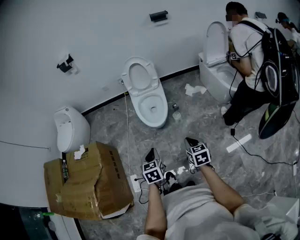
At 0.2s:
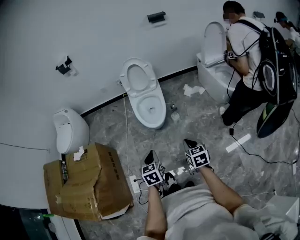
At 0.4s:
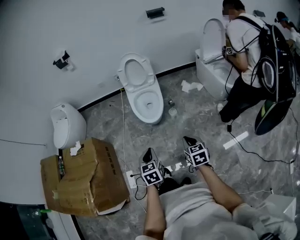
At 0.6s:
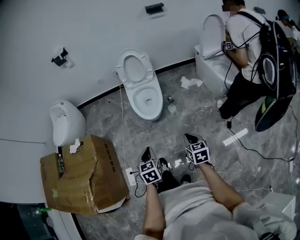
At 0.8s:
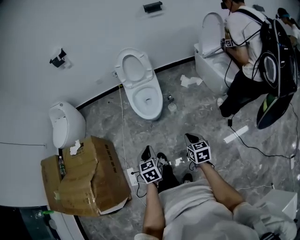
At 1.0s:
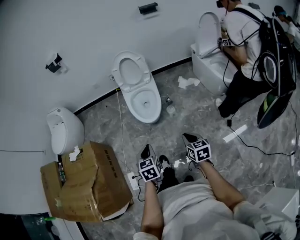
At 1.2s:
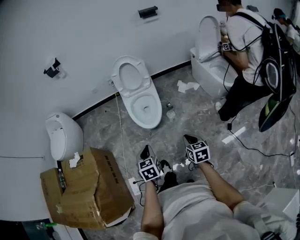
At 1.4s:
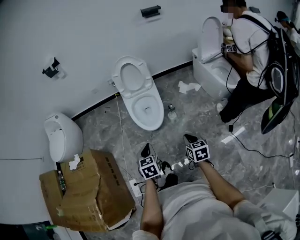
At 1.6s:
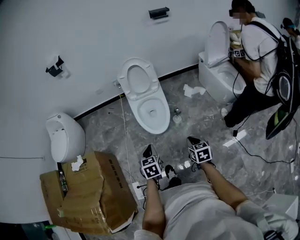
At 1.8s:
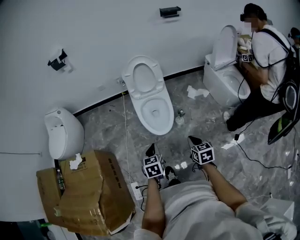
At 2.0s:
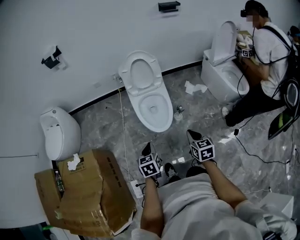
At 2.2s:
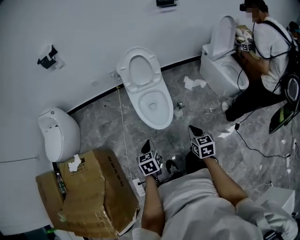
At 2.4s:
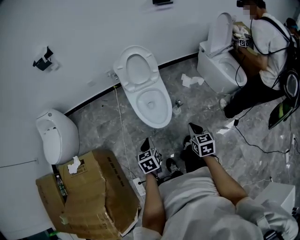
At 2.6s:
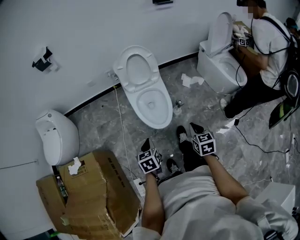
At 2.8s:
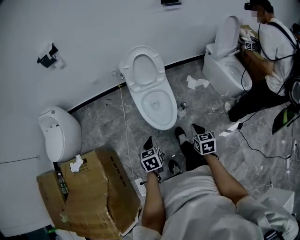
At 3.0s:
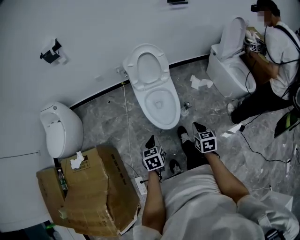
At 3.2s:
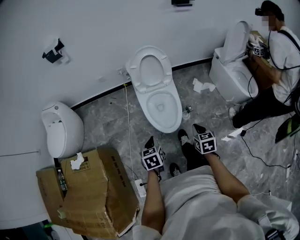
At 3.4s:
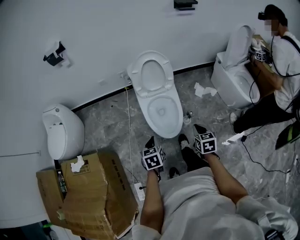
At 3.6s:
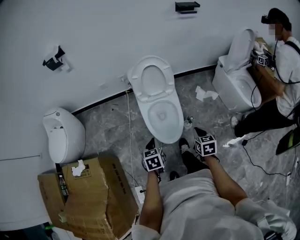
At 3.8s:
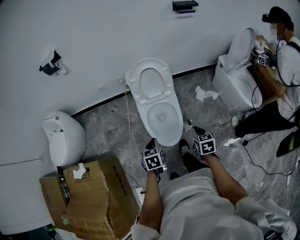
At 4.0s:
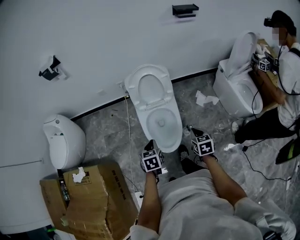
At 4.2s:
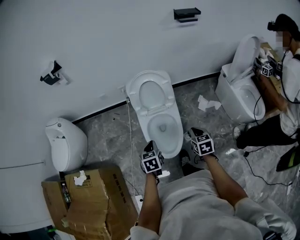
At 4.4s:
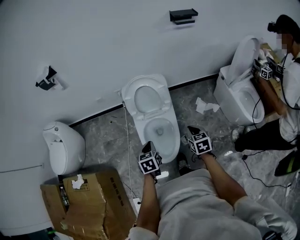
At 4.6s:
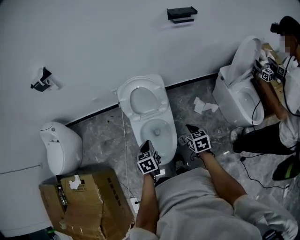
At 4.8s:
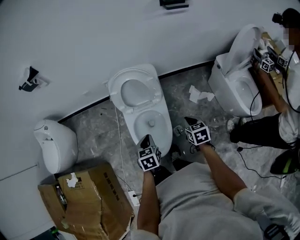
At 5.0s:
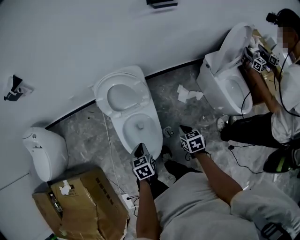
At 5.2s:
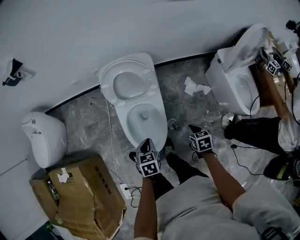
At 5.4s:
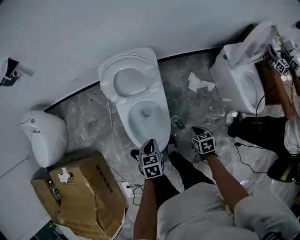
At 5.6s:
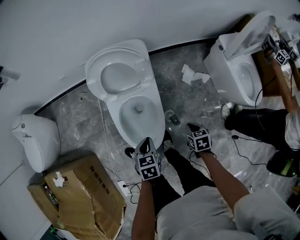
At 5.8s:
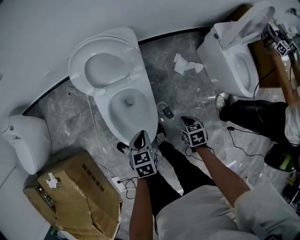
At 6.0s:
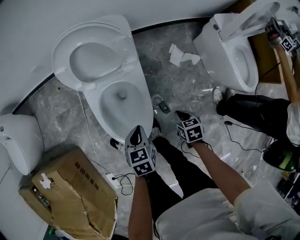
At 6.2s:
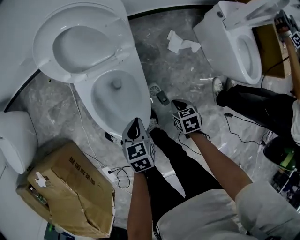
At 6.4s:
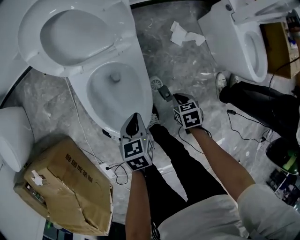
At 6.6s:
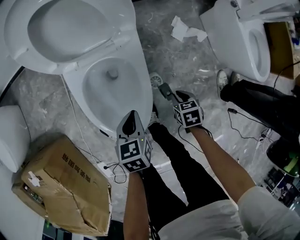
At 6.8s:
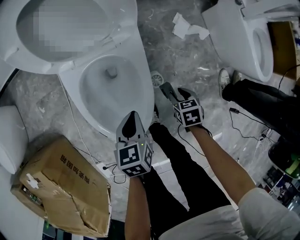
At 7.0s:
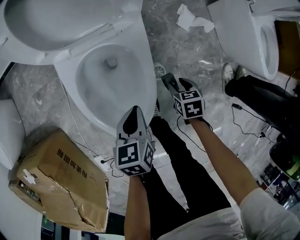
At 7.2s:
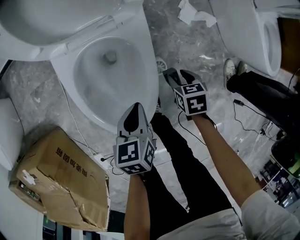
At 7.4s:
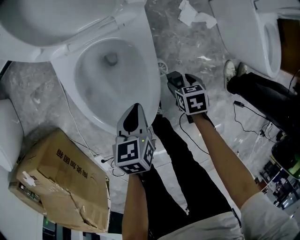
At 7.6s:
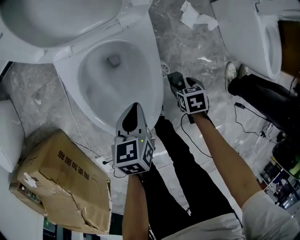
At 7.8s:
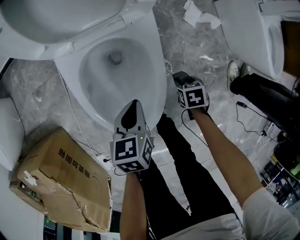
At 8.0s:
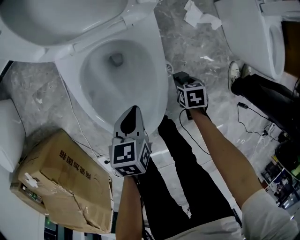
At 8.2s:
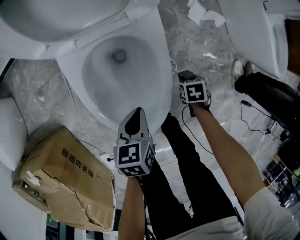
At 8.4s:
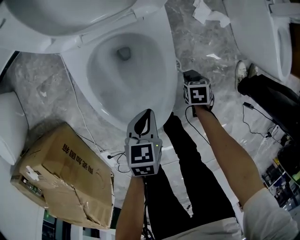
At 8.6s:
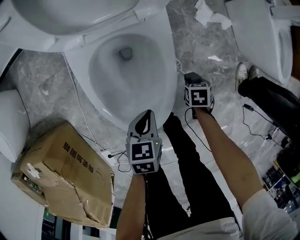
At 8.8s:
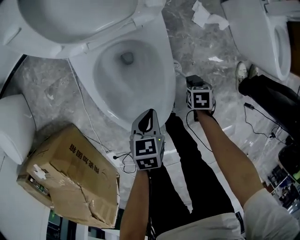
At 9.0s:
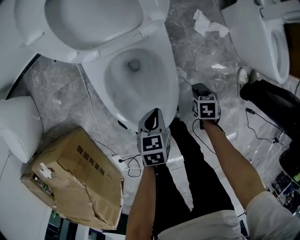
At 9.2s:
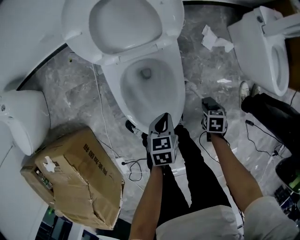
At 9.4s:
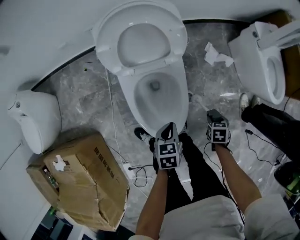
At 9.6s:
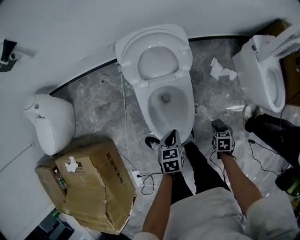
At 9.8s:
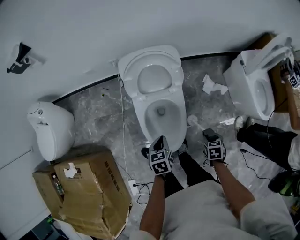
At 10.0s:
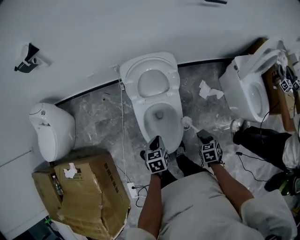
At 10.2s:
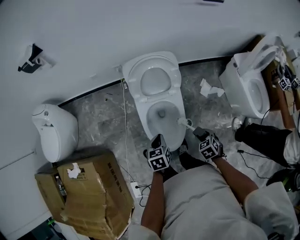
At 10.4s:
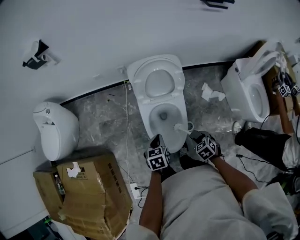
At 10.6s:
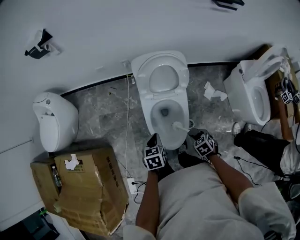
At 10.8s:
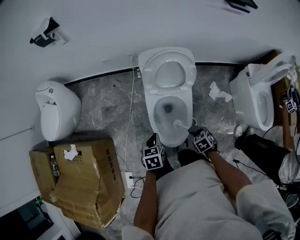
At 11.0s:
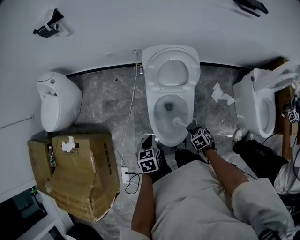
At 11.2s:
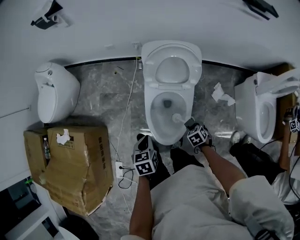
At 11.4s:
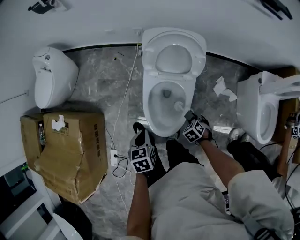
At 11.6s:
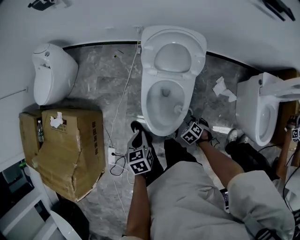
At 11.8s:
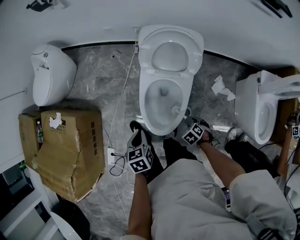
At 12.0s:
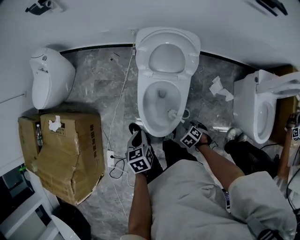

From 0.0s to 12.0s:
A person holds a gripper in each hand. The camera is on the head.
From 0.0s to 1.6s: The two grippers go approximately 10 cm forward.
From 1.6s to 3.0s: Both grippers travel together forward and to the left, roughly 15 cm.
From 3.0s to 4.4s: Both grippers travel together forward, some 25 cm.
From 4.4s to 6.0s: The right gripper goes approximately 25 cm downward, and turns by roughly 30 degrees, while the left gripper shifts some 20 cm downward and to the right.
From 6.0s to 7.6s: The grippers both shift downward by roughly 15 cm. The right gripper opens its fingers.
From 7.6s to 9.0s: The grippers make only small movements.
From 9.0s to 10.4s: Both grippers move upward, some 30 cm. The right gripper swivels about 40 degrees.
From 10.4s to 12.0s: The left gripper moves some 5 cm, and swivels roughly 20 degrees; the right gripper travels downward by about 15 cm, and turns by some 30 degrees.

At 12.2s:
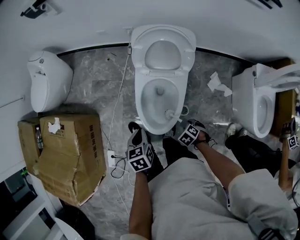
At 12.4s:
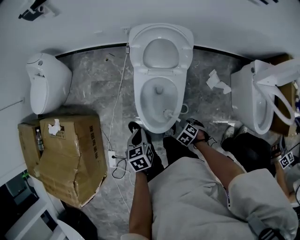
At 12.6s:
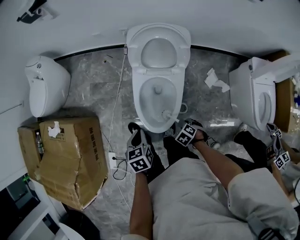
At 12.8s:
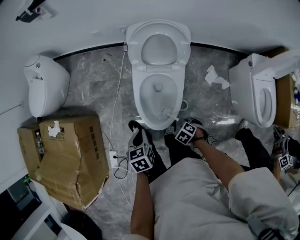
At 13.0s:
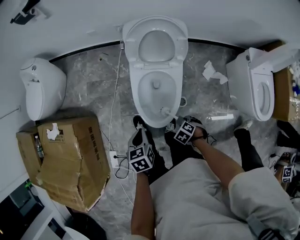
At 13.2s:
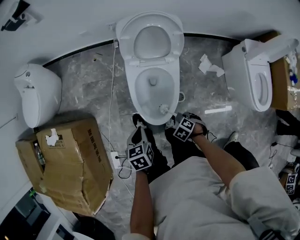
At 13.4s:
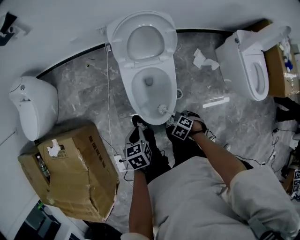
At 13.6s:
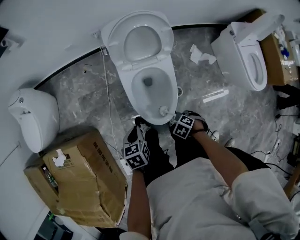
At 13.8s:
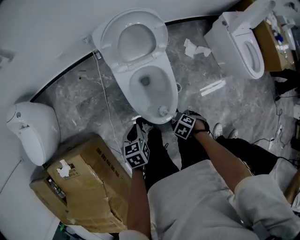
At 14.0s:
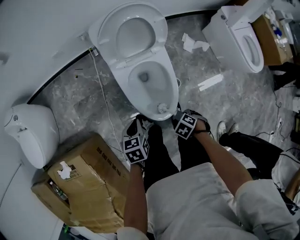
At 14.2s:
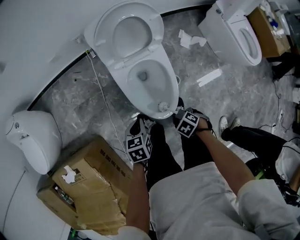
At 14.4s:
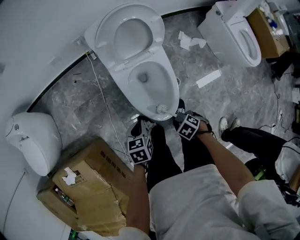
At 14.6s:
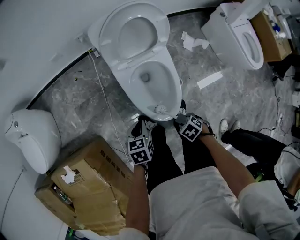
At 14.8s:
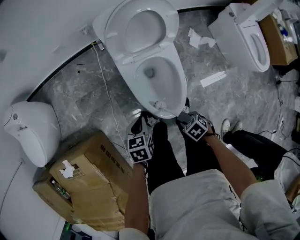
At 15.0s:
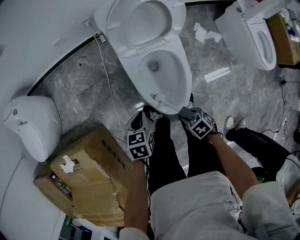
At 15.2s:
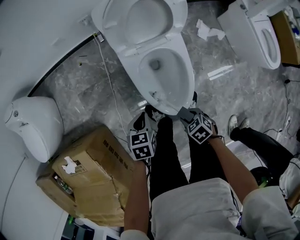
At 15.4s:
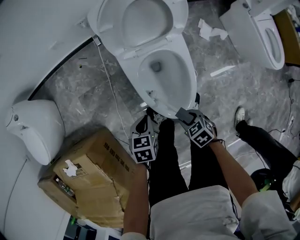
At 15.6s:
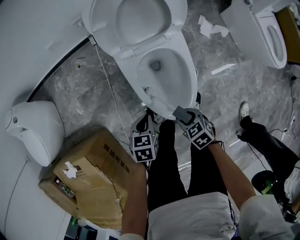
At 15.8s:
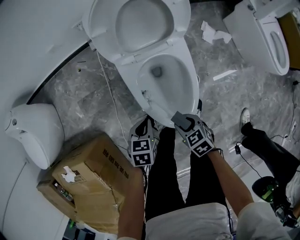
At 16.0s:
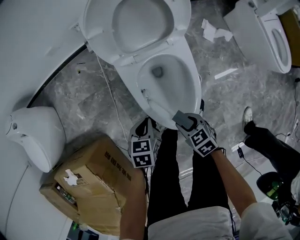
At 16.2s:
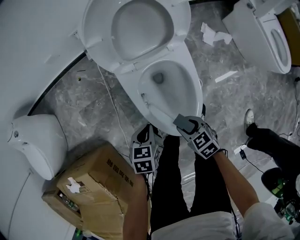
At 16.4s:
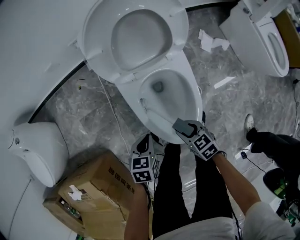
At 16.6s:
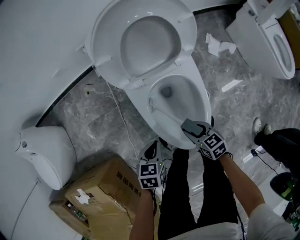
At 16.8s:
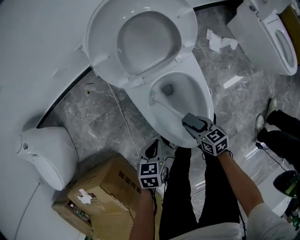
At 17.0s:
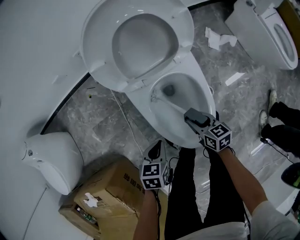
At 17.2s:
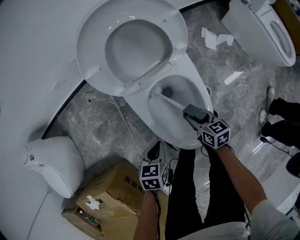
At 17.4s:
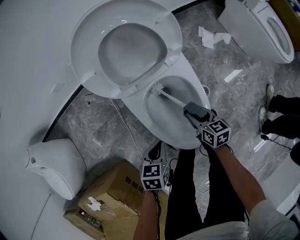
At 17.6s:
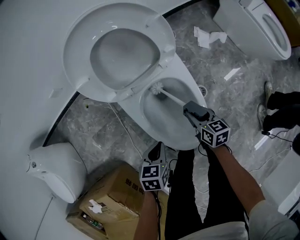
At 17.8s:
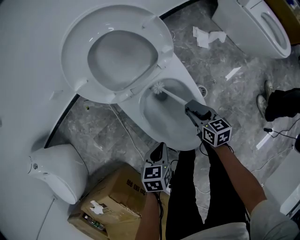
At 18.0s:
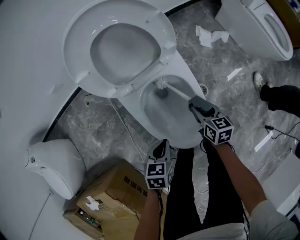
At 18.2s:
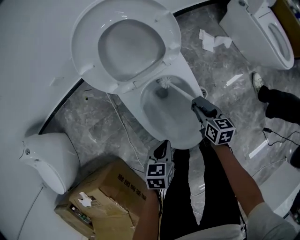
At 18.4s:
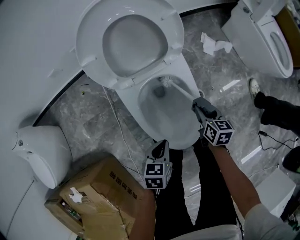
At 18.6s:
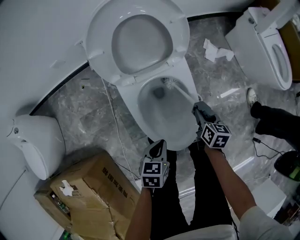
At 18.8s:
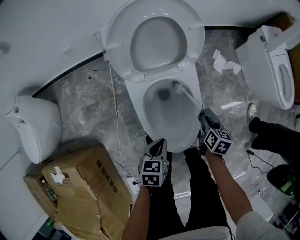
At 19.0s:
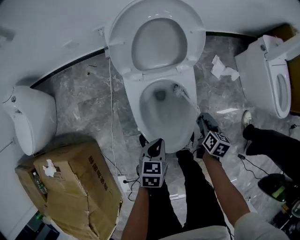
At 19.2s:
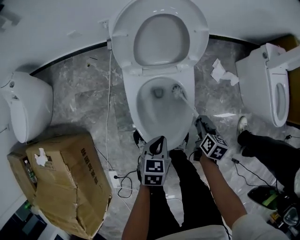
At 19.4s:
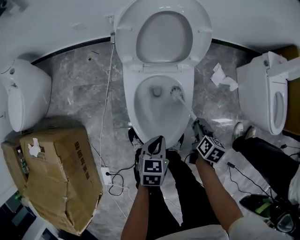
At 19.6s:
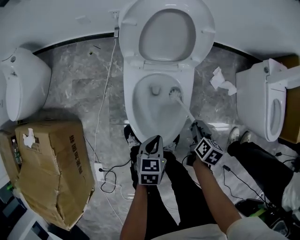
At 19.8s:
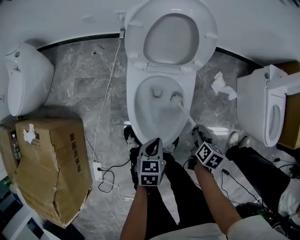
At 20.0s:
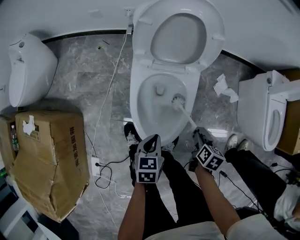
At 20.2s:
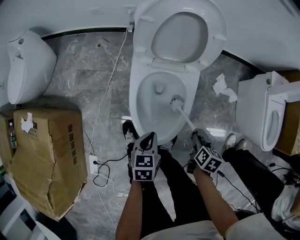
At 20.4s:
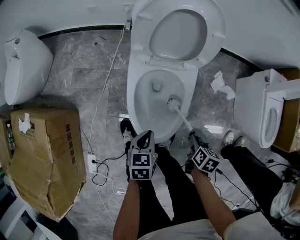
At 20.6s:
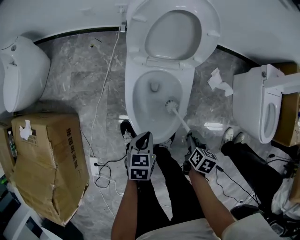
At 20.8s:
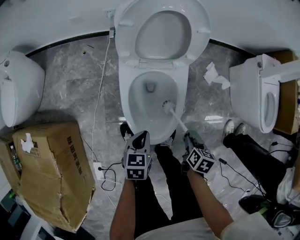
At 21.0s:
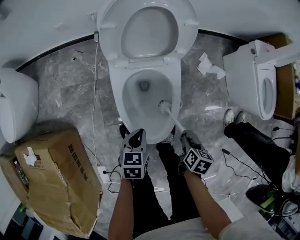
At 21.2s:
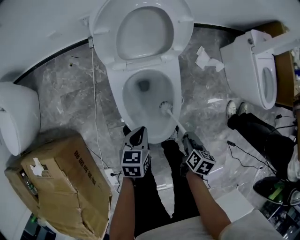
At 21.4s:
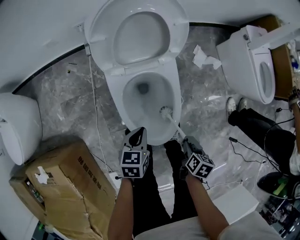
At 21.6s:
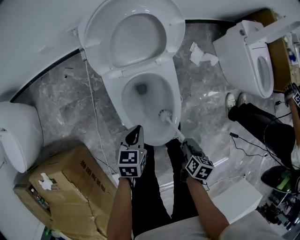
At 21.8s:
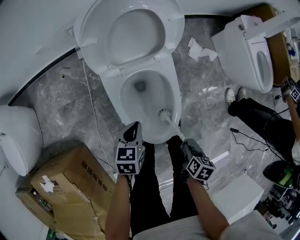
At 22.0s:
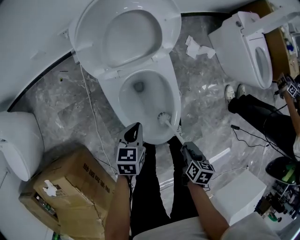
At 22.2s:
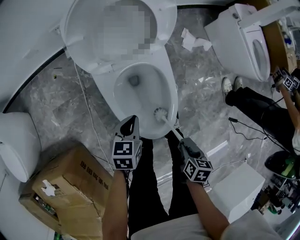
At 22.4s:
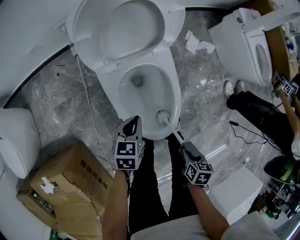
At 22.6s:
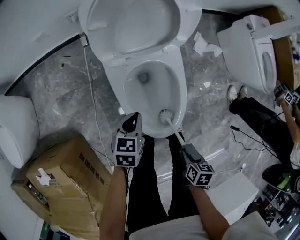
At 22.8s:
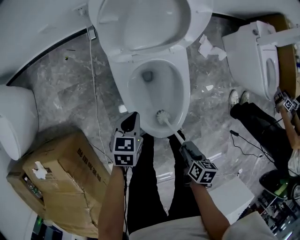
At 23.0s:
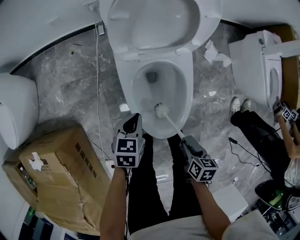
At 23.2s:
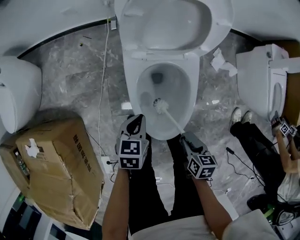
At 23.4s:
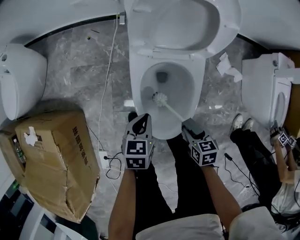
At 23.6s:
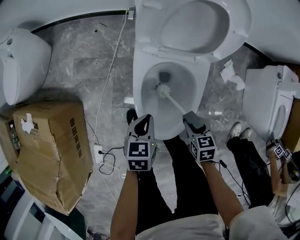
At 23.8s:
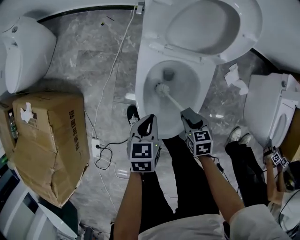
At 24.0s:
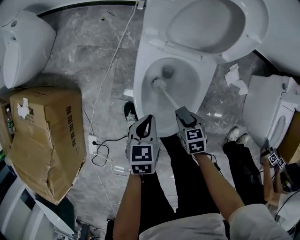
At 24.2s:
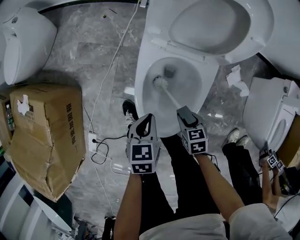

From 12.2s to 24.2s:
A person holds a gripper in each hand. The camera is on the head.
From 12.2s to 13.8s: The left gripper moves about 10 cm, and turns by about 30 degrees. Meanwhile the right gripper changes place by about 10 cm, and swivels some 20 degrees.
From 13.8s to 15.2s: The left gripper travels downward by roughly 5 cm, while the right gripper shifts by about 10 cm, and rotates approximately 30 degrees.
From 15.2s to 16.6s: The right gripper shifts roughly 10 cm forward and downward, and changes its angle by approximately 30 degrees. The left gripper travels downward by approximately 5 cm.
From 16.6s to 18.2s: The right gripper heads to the right and forward, covering approximately 15 cm, and changes its angle by roughly 30 degrees. Meanwhile the left gripper goes approximately 5 cm to the right.
From 18.2s to 19.8s: The grippers both shift to the right by some 10 cm. The left gripper turns by some 30 degrees.
From 19.8s to 21.2s: The right gripper goes roughly 10 cm backward. The left gripper travels to the left by some 5 cm.
From 21.2s to 22.6s: The left gripper ends up roughly 5 cm from where it was; the right gripper changes place by some 10 cm.
From 22.6s to 24.2s: The right gripper shifts by some 20 cm, and twists some 60 degrees counterclockwise, seen from behind. Meanwhile the left gripper changes place by approximately 5 cm, and rotates approximately 40 degrees.
